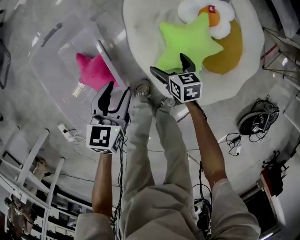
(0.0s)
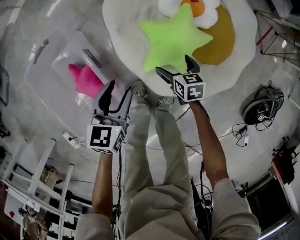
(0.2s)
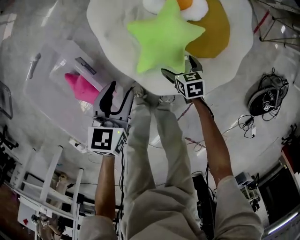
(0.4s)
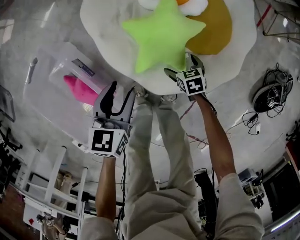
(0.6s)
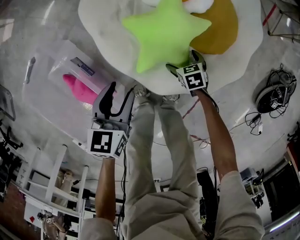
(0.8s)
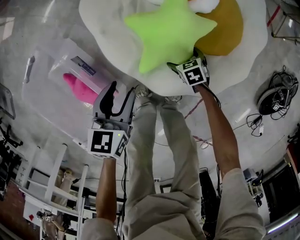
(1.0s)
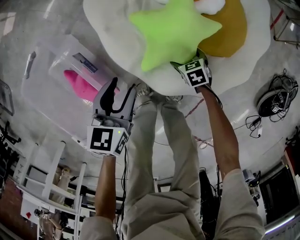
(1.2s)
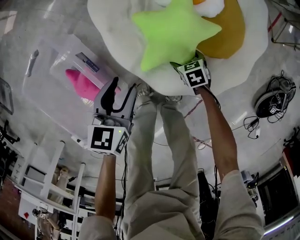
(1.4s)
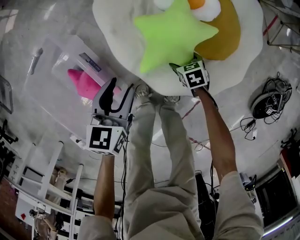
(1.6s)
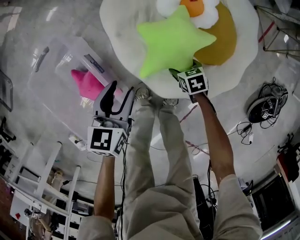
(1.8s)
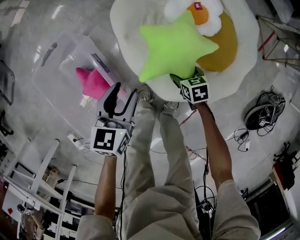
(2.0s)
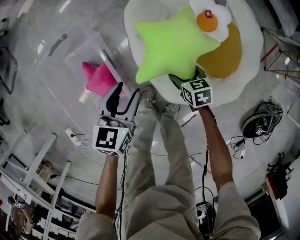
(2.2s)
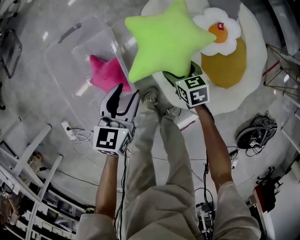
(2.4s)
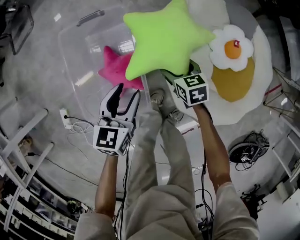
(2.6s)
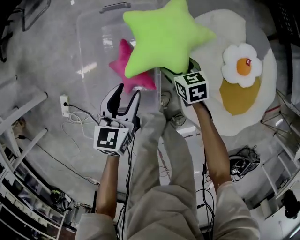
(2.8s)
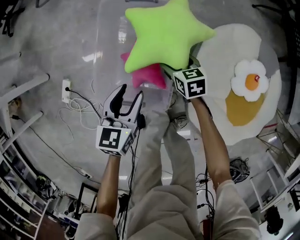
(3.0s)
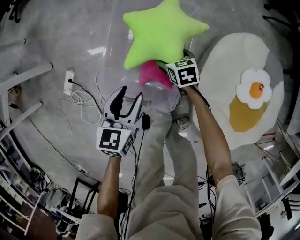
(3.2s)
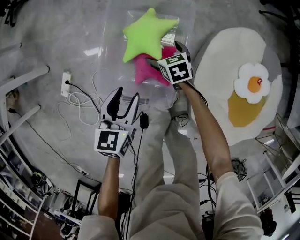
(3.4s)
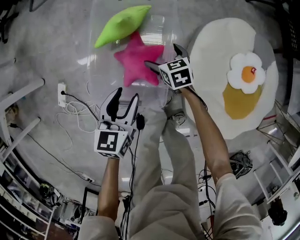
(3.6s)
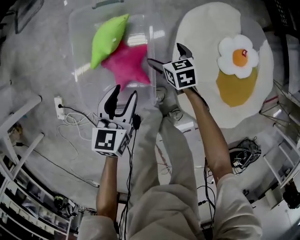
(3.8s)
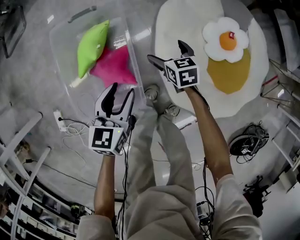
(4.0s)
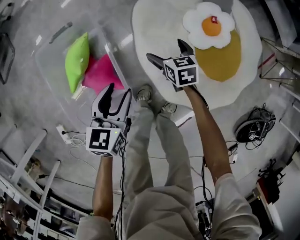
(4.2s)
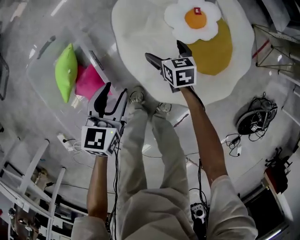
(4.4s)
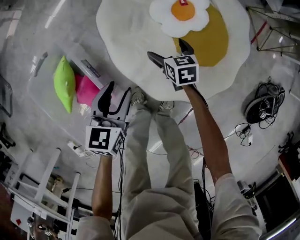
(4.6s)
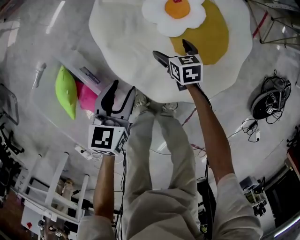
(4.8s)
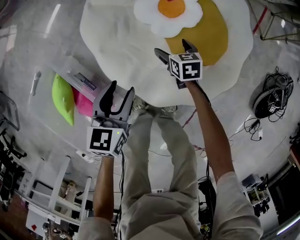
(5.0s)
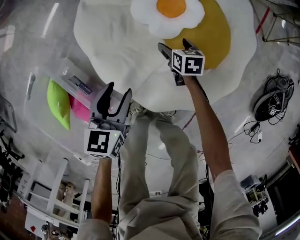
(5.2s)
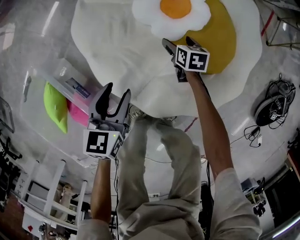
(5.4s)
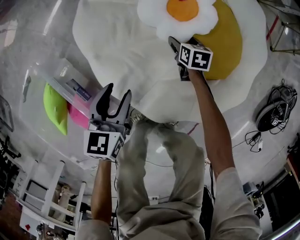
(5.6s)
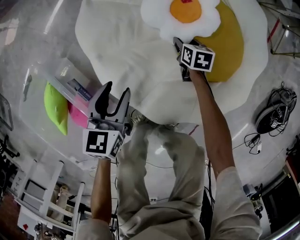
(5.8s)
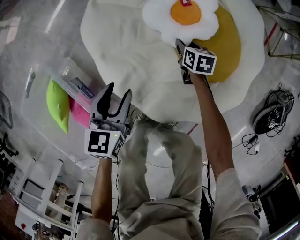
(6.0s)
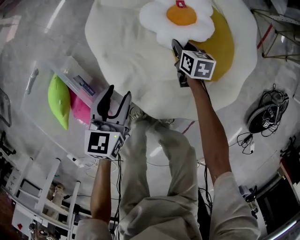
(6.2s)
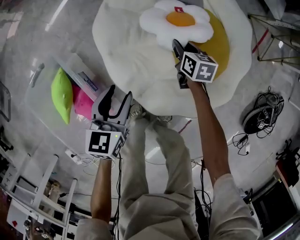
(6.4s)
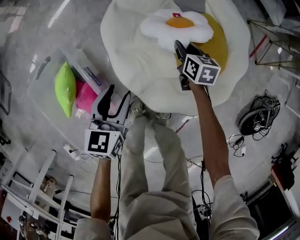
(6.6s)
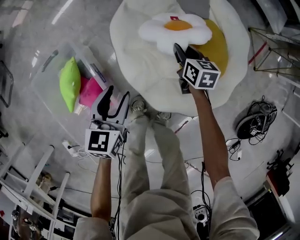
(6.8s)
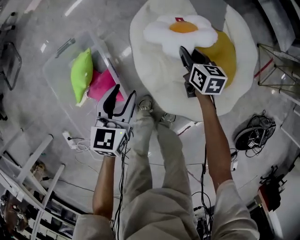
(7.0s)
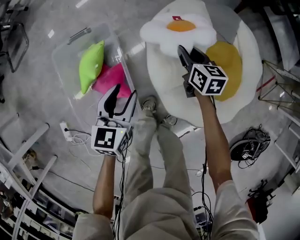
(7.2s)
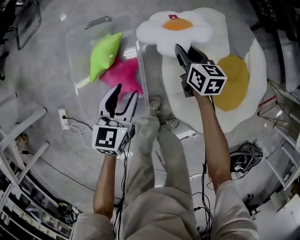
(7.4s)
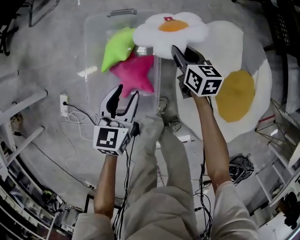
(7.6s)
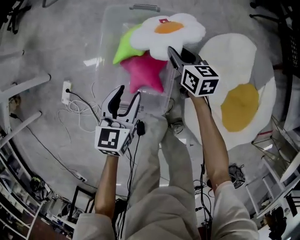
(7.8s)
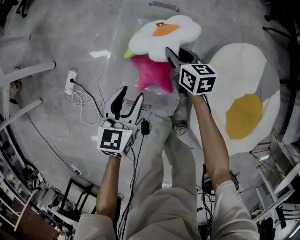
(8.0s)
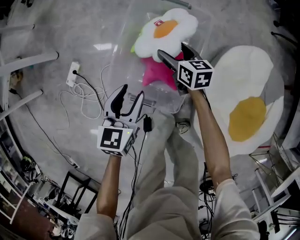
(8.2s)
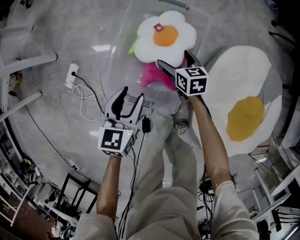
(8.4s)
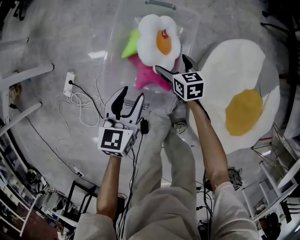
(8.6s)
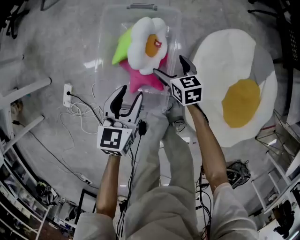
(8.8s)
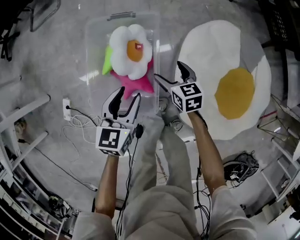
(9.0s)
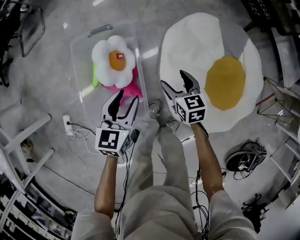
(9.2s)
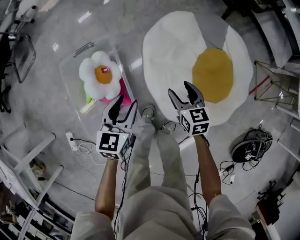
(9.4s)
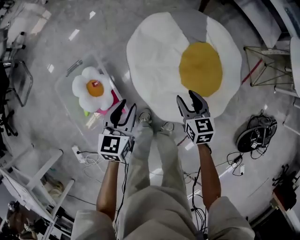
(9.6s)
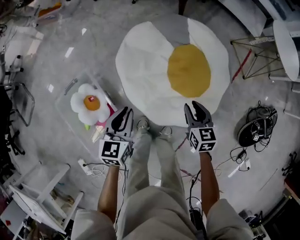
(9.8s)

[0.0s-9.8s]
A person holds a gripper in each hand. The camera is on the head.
0.0s to 1.4s: The right gripper is displaced downward and to the right by some 20 cm, and turns by roughly 20 degrees. The left gripper heads to the right and downward, covering some 10 cm.
1.4s to 2.8s: The left gripper changes place by roughly 30 cm, and changes its angle by roughly 40 degrees; the right gripper moves some 40 cm, and changes its angle by roughly 30 degrees.
2.8s to 4.2s: The right gripper changes place by roughly 20 cm, and swivels approximately 20 degrees. Meanwhile the left gripper ends up some 15 cm from where it was.
4.2s to 5.6s: The right gripper ends up approximately 35 cm from where it was, turns by about 40 degrees, and closes its fingers; the left gripper moves some 25 cm.
5.6s to 7.0s: The grippers both shift upward and to the left by about 30 cm. The right gripper rotates some 30 degrees, and closes.
7.0s to 8.4s: The right gripper shifts by roughly 50 cm, swivels about 50 degrees, and opens its fingers, while the left gripper moves approximately 35 cm, and changes its angle by about 40 degrees.
8.4s to 9.8s: The pair of grippers is taken some 50 cm. The right gripper rotates about 60 degrees, and closes; the left gripper swivels about 50 degrees, and closes its fingers.

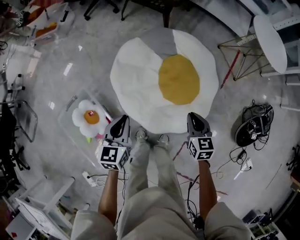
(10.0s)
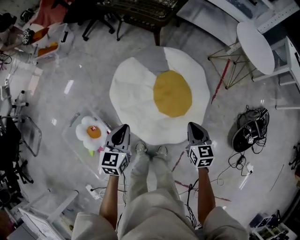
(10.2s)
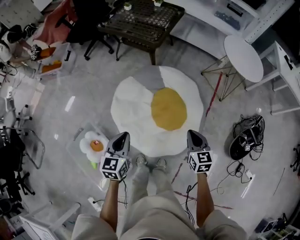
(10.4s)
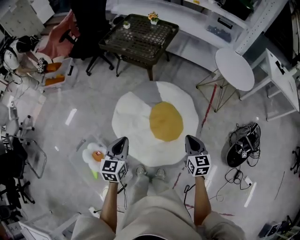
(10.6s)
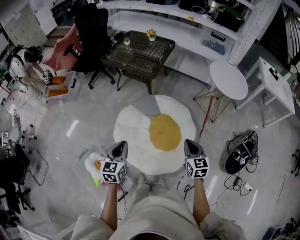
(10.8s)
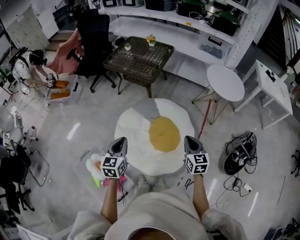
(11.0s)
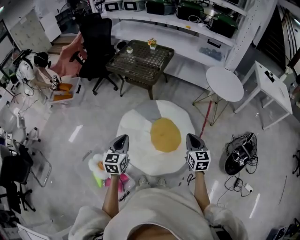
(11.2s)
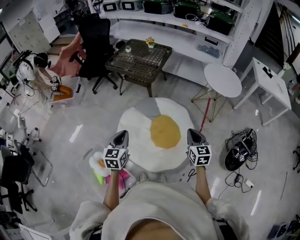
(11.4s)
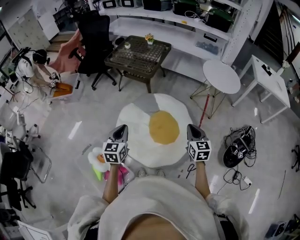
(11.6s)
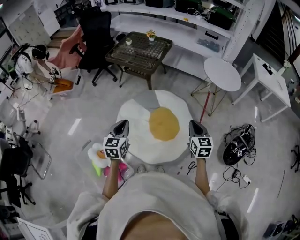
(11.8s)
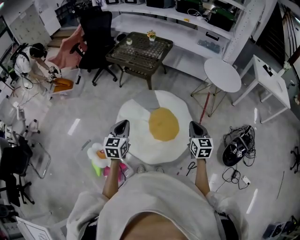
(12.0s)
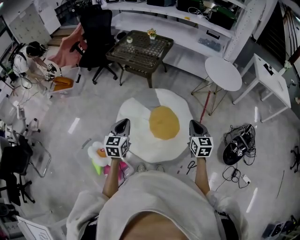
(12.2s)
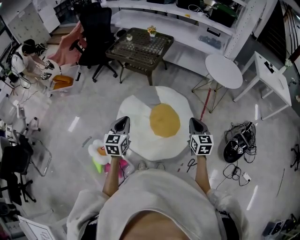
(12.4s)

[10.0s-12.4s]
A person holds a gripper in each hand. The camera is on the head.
10.0s to 11.2s: The grippers both shift upward by roughly 30 cm.
11.2s to 12.4s: The grippers move only a little.

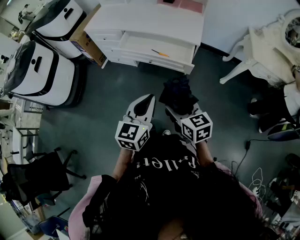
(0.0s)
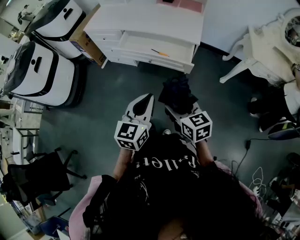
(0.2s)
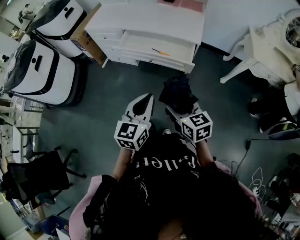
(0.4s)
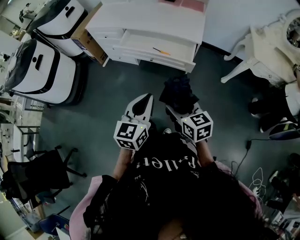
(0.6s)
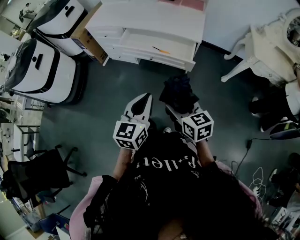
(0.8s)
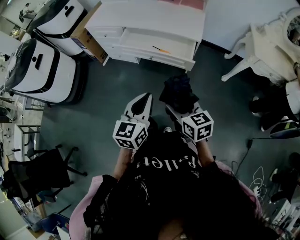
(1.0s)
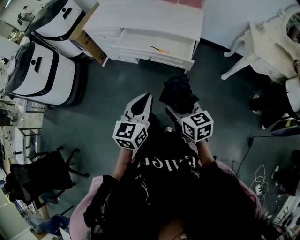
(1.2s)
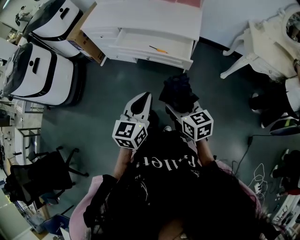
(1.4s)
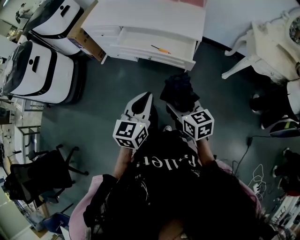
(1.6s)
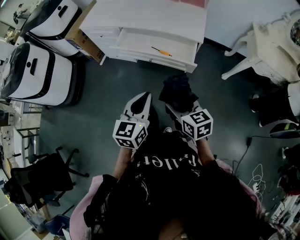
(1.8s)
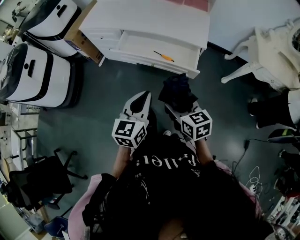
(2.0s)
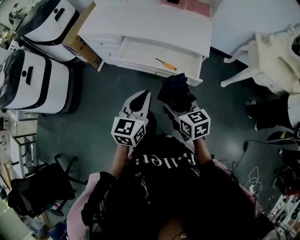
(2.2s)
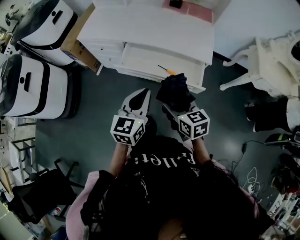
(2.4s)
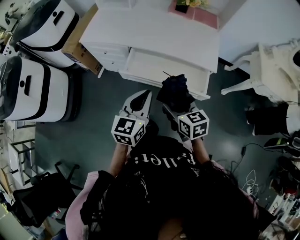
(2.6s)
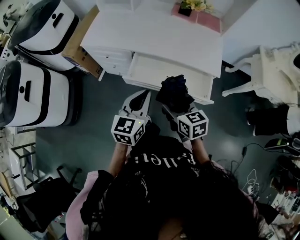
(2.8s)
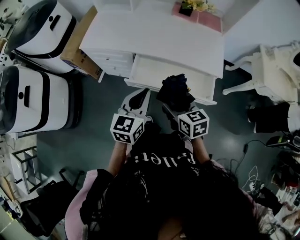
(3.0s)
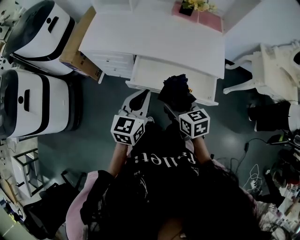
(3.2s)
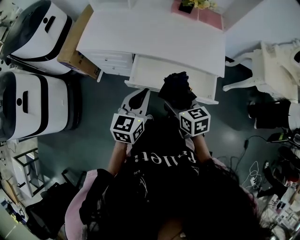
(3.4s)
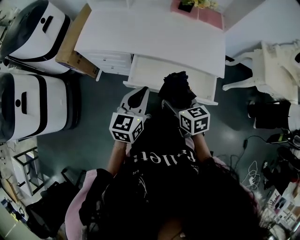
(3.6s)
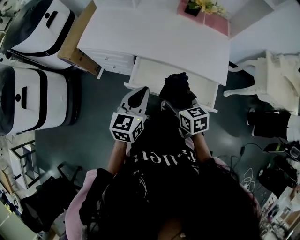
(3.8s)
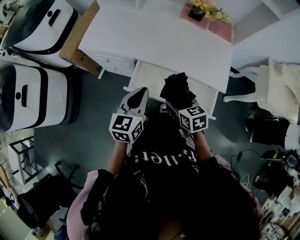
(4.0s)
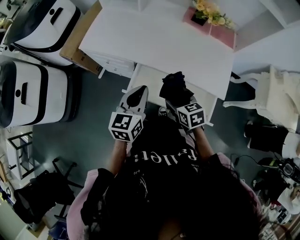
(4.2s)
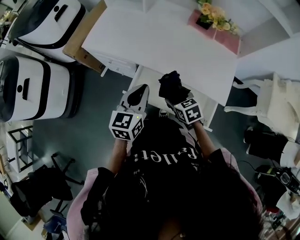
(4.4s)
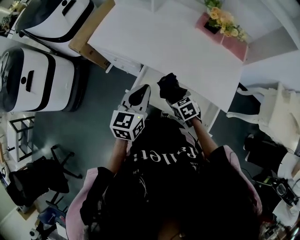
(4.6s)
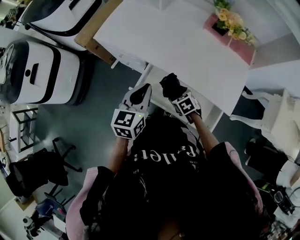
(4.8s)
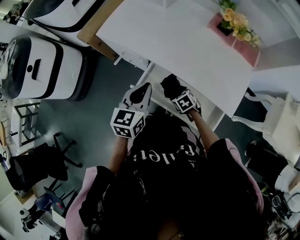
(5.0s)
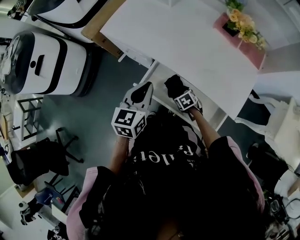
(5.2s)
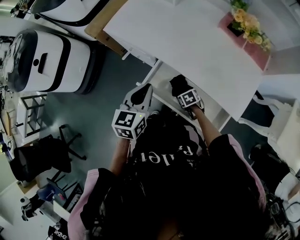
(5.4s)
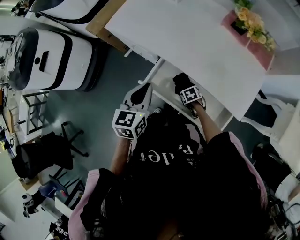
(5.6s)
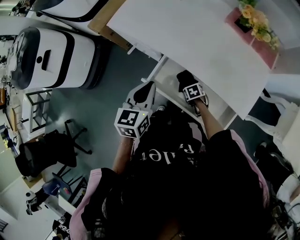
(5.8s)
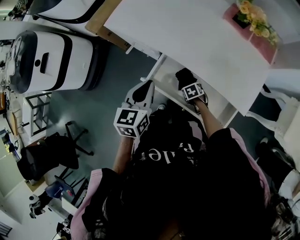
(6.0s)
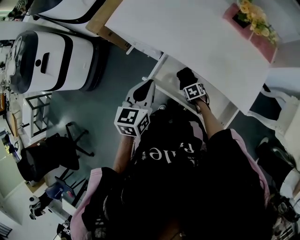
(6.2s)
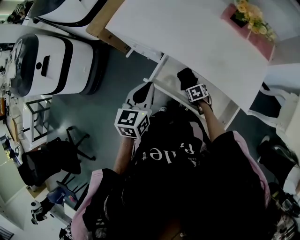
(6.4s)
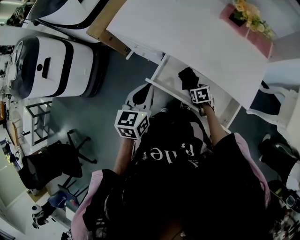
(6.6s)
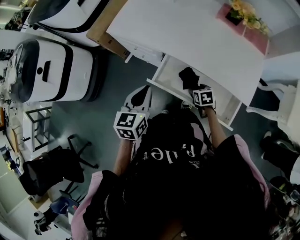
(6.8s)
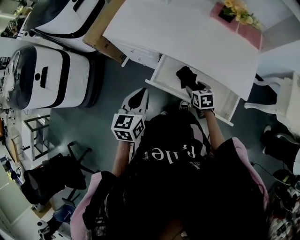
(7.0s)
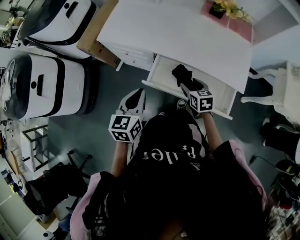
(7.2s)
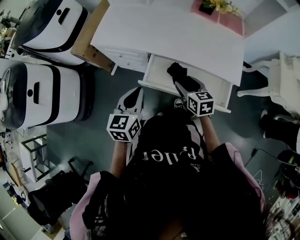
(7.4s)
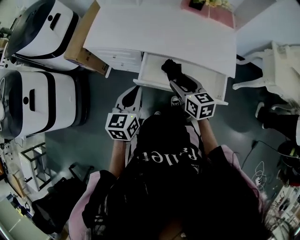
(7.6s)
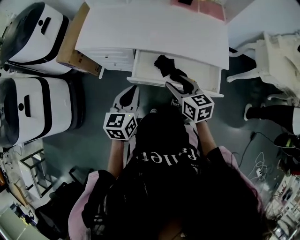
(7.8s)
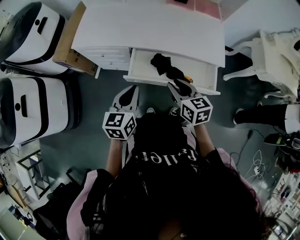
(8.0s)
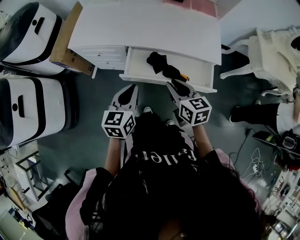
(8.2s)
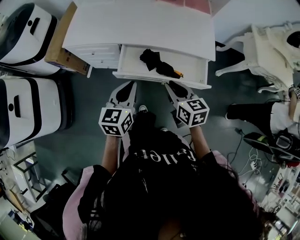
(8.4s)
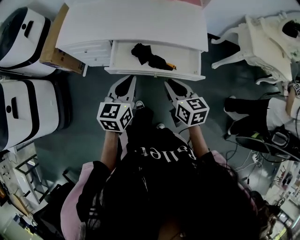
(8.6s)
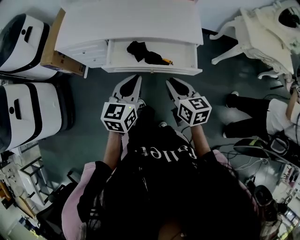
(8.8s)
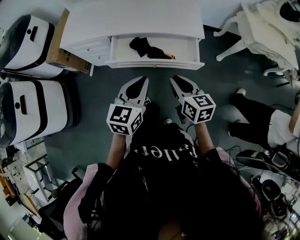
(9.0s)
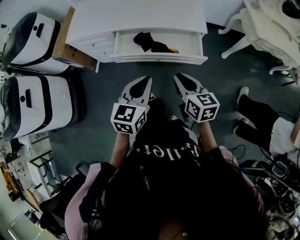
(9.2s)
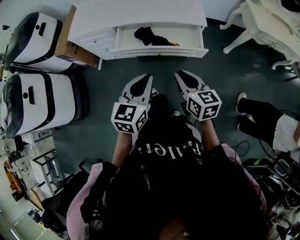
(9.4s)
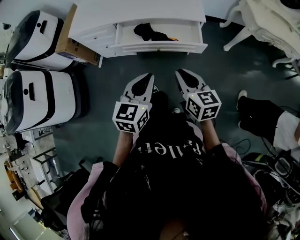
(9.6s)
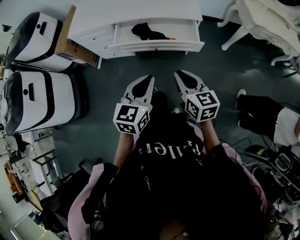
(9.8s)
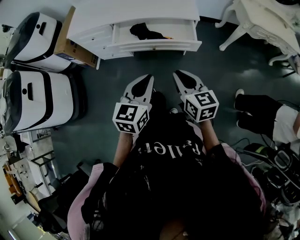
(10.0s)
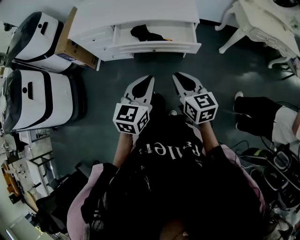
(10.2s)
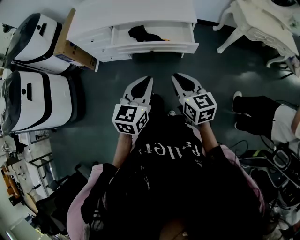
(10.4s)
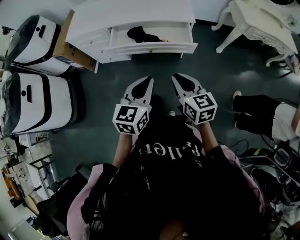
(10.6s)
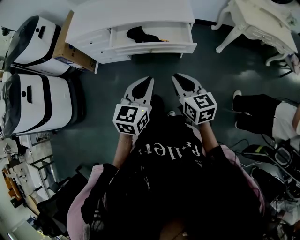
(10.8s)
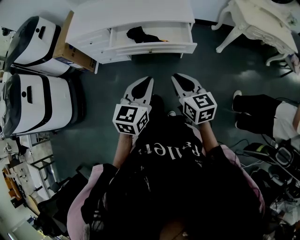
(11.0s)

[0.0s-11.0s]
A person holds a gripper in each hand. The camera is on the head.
0.0s to 1.6s: There are only small adjustments of the grippers.
1.6s to 3.2s: The grippers both shift forward and to the left by approximately 40 cm.
3.2s to 4.8s: The left gripper ends up some 15 cm from where it was; the right gripper shifts roughly 20 cm downward, and rotates approximately 40 degrees.
4.8s to 6.2s: The right gripper goes approximately 15 cm downward.
6.2s to 7.8s: The left gripper moves some 10 cm, and swivels roughly 20 degrees, while the right gripper travels upward by some 30 cm, and points its fingers some 50 degrees further upward.
7.8s to 9.4s: The grippers both shift backward and to the right by about 30 cm. The right gripper closes.
9.4s to 11.0s: The grippers both shift backward by about 10 cm.
